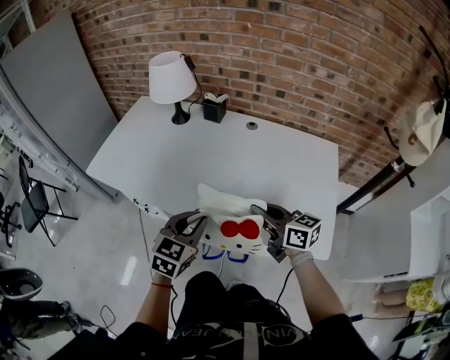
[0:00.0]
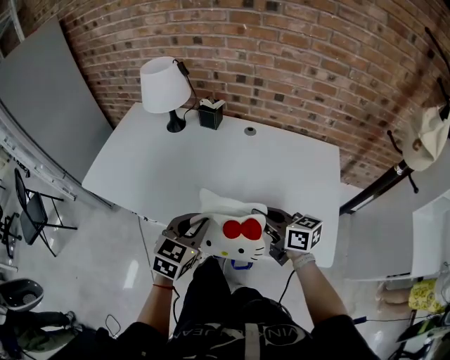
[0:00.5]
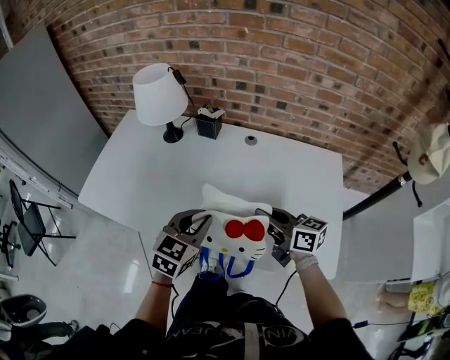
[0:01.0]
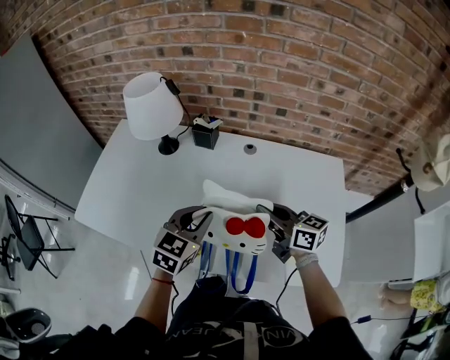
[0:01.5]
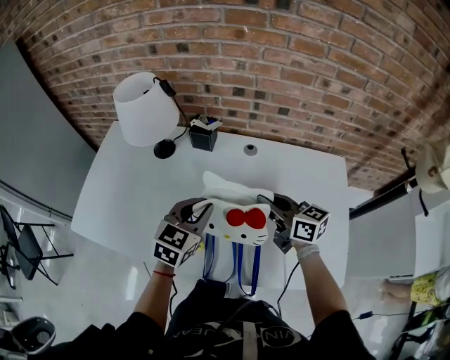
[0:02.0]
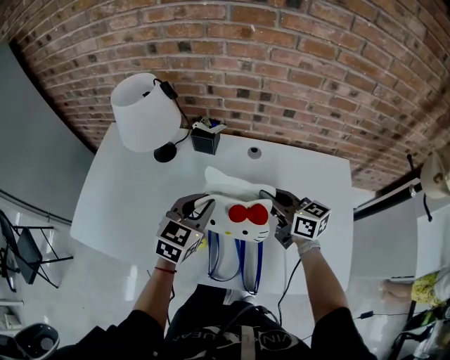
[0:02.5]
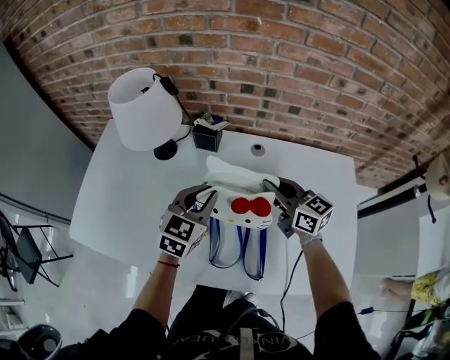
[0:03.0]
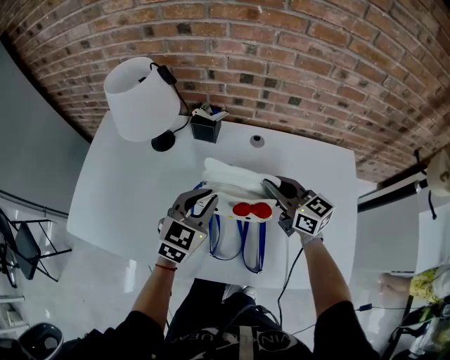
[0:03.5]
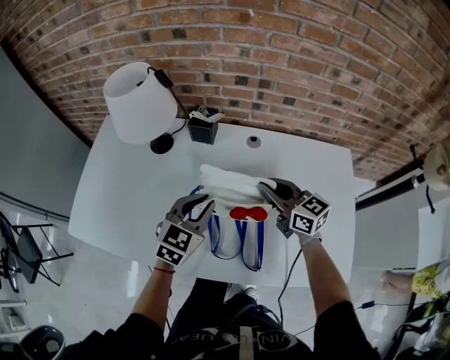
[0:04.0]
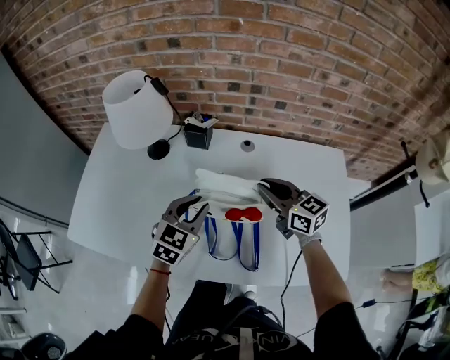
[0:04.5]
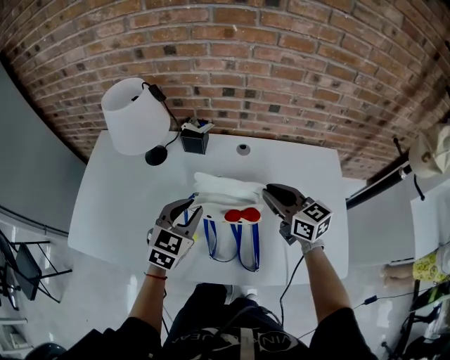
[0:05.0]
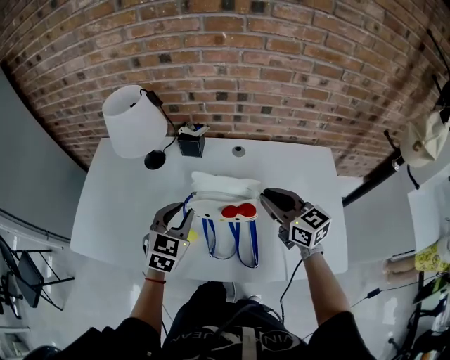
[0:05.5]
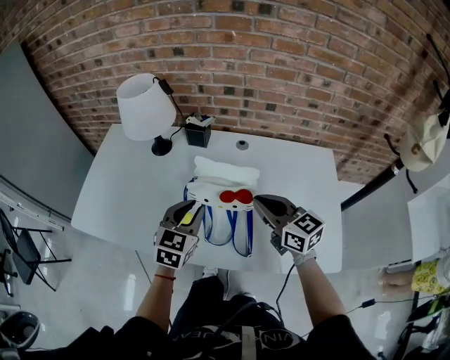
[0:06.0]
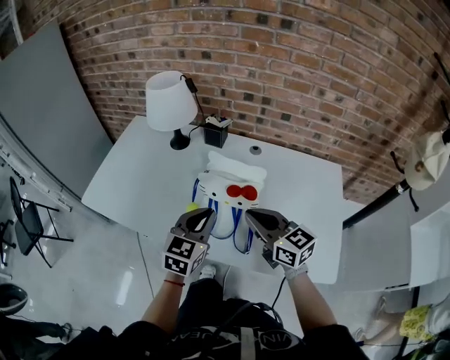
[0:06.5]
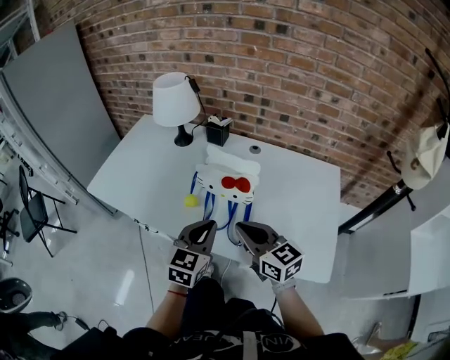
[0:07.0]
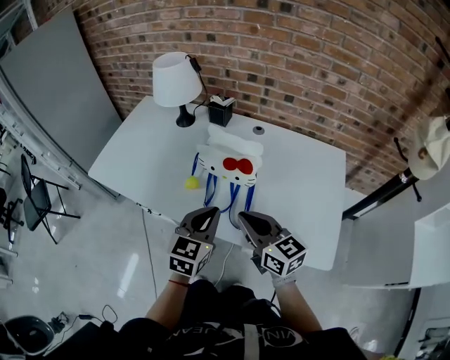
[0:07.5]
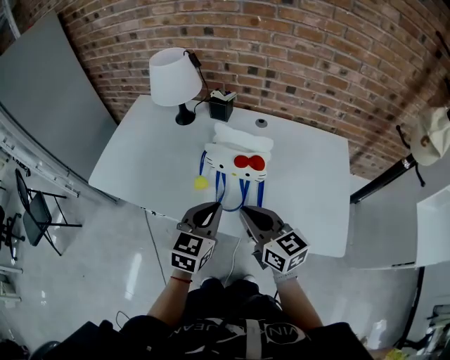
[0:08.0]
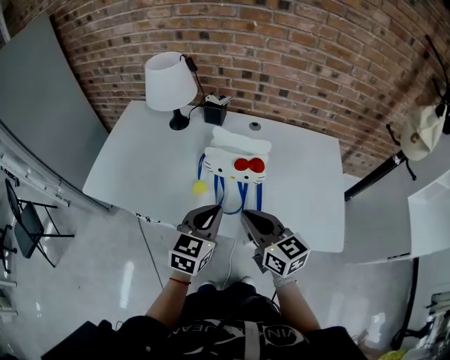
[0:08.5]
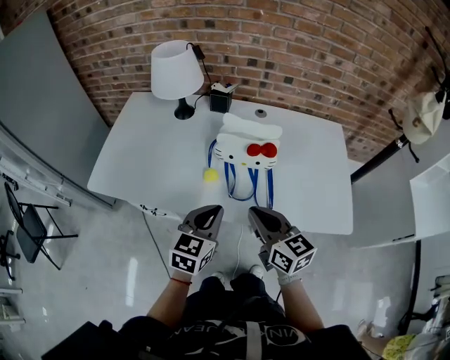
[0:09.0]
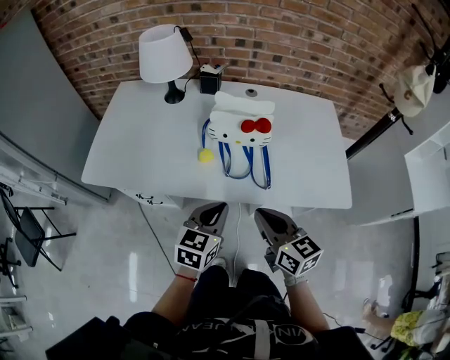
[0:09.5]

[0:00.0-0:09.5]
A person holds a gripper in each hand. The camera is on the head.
0:00.0 to 0:02.0: Both grippers move forward, some 25 cm.
0:04.0 to 0:05.5: The left gripper ends up some 5 cm from where it was. The right gripper goes approximately 5 cm backward.
0:05.5 to 0:07.5: The grippers both shift backward by approximately 20 cm. The left gripper swivels approximately 20 degrees.
0:07.5 to 0:09.5: The left gripper shifts some 15 cm to the left, backward and downward, and rotates roughly 20 degrees. The right gripper is displaced backward and to the left by approximately 15 cm, and changes its angle by approximately 20 degrees.

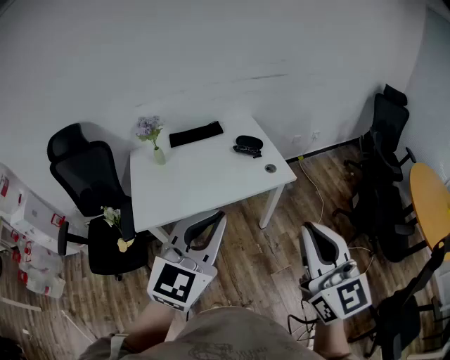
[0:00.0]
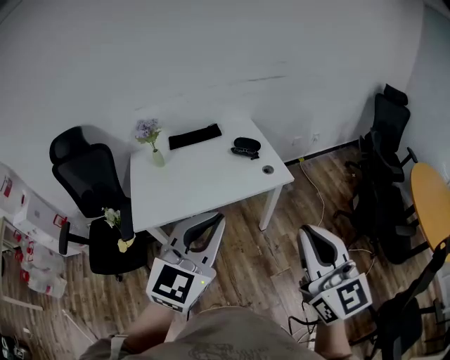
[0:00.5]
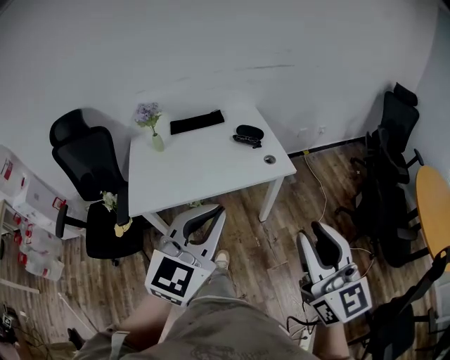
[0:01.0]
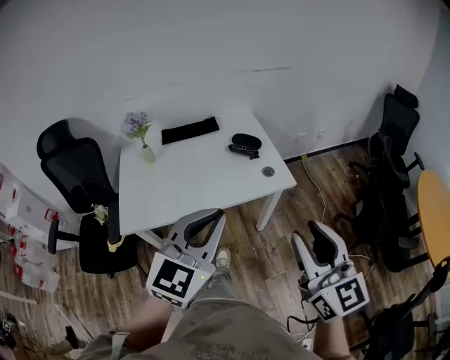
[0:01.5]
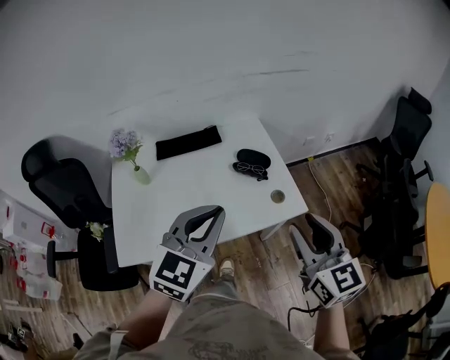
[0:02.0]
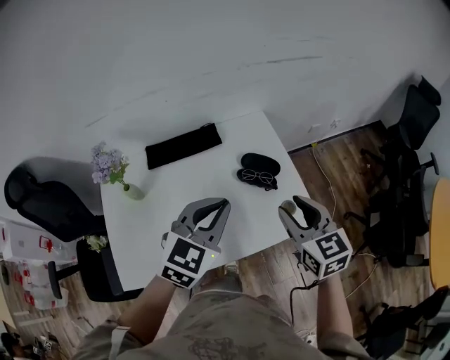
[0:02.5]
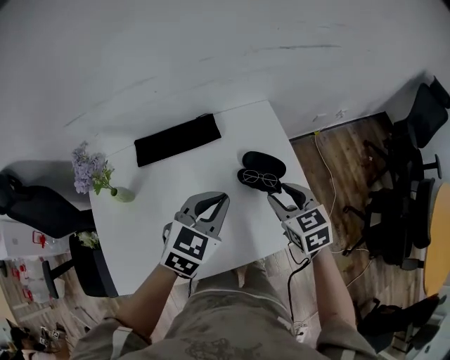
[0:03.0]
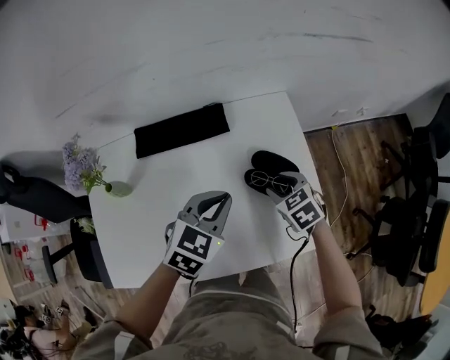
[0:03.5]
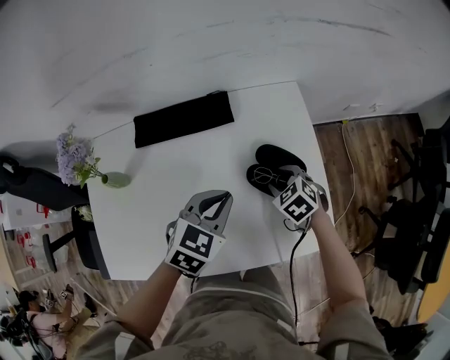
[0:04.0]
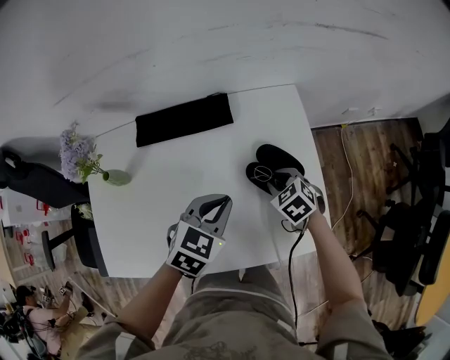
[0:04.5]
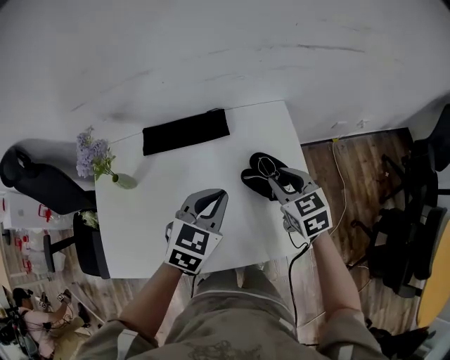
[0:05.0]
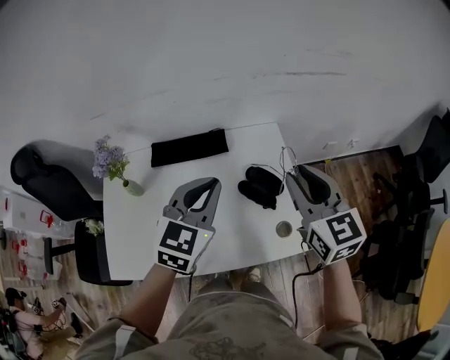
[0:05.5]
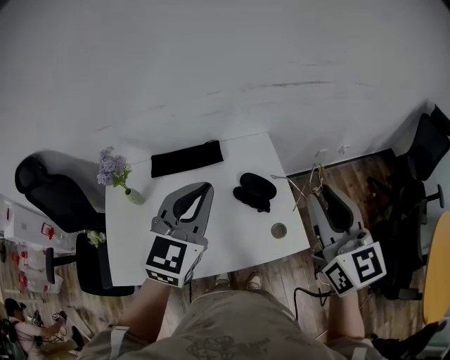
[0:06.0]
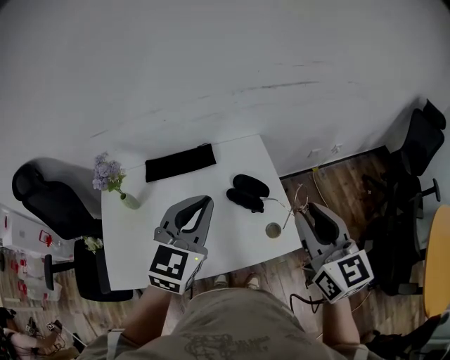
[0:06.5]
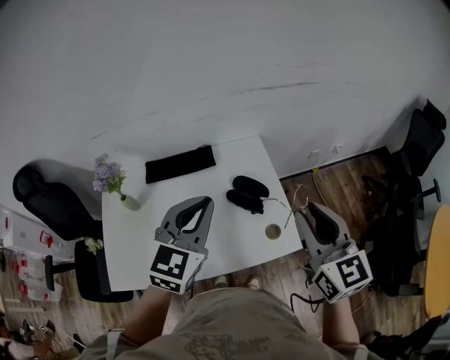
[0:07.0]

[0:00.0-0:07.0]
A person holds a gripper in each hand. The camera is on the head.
0:00.0 to 0:02.0: The left gripper goes about 25 cm forward; the right gripper travels forward and downward by about 30 cm, and opens its fingers.
0:02.0 to 0:03.5: The right gripper shifts some 40 cm downward and forward, and points its fingers roughly 50 degrees further downward, while the left gripper heads forward and downward, covering roughly 35 cm, and swivels roughly 30 degrees.
0:03.5 to 0:05.0: The right gripper is displaced upward by approximately 10 cm.
0:05.0 to 0:07.0: The right gripper shifts roughly 30 cm upward and backward, and swivels approximately 30 degrees, while the left gripper shifts roughly 20 cm upward, and turns by approximately 20 degrees.

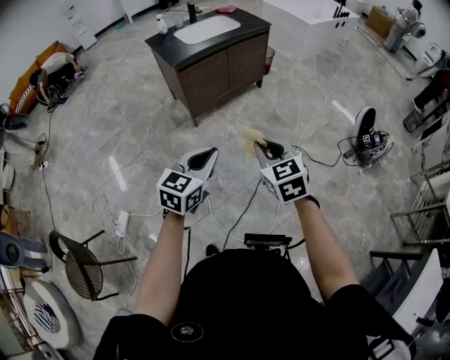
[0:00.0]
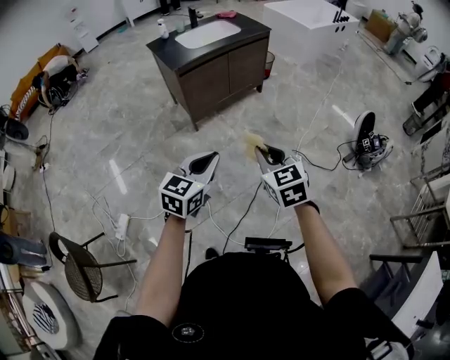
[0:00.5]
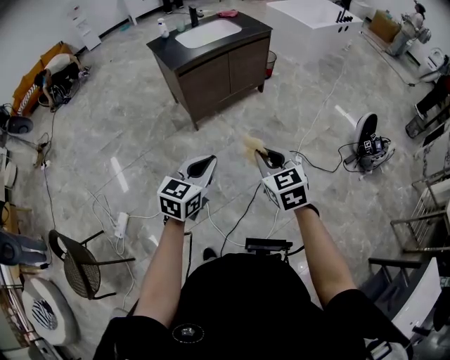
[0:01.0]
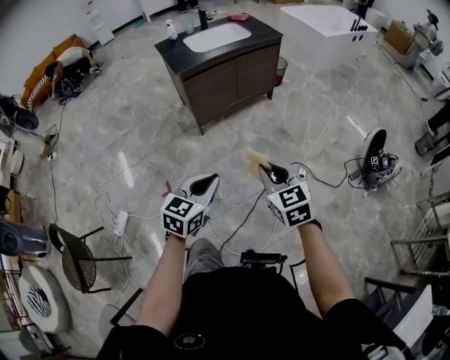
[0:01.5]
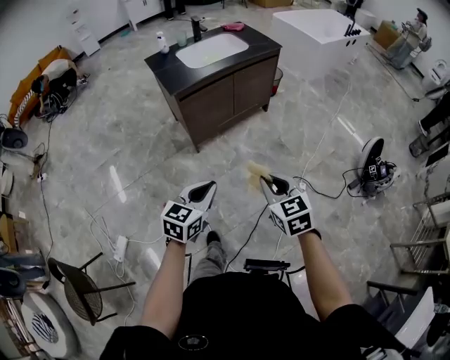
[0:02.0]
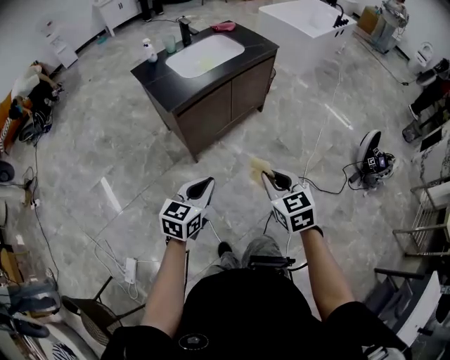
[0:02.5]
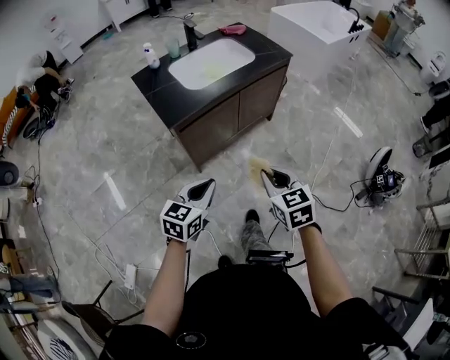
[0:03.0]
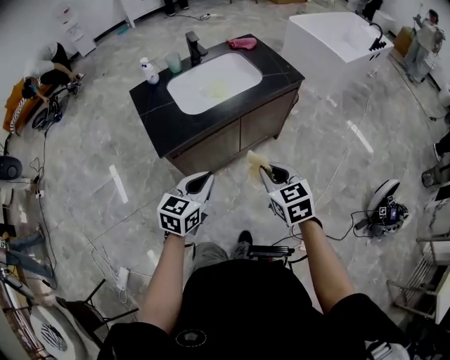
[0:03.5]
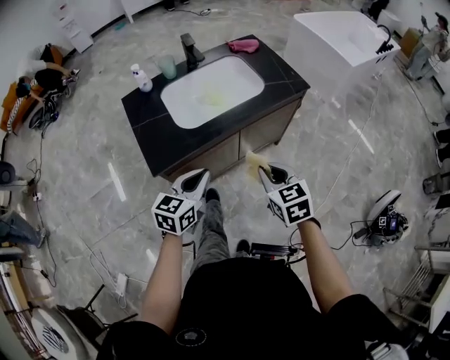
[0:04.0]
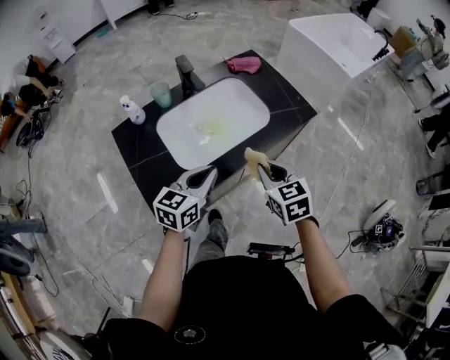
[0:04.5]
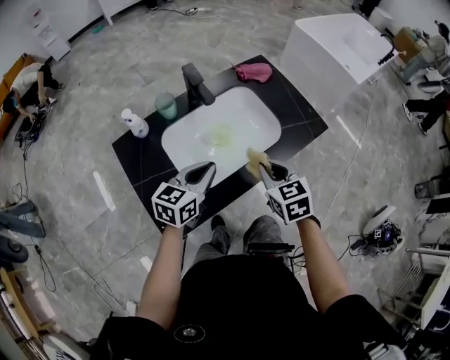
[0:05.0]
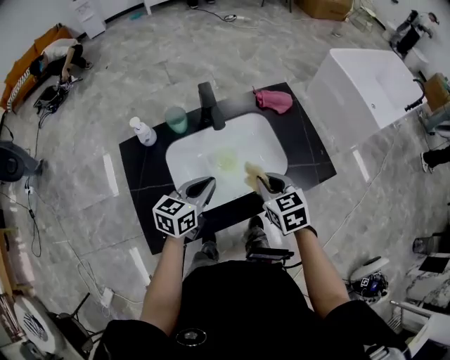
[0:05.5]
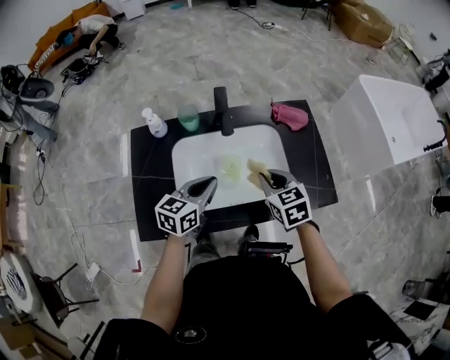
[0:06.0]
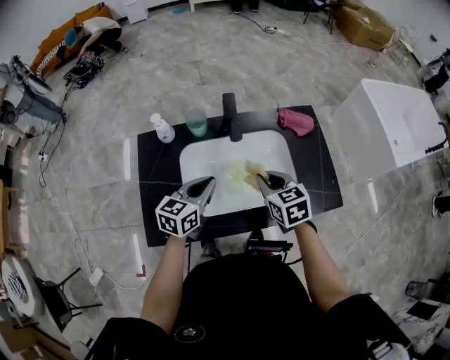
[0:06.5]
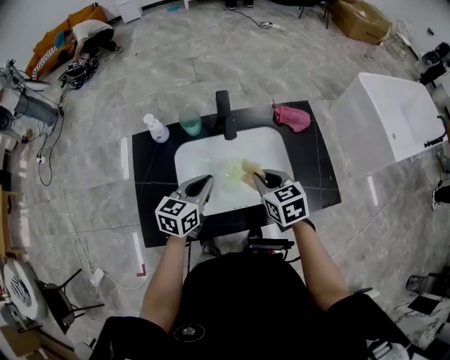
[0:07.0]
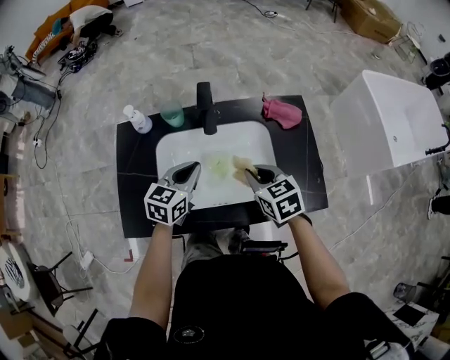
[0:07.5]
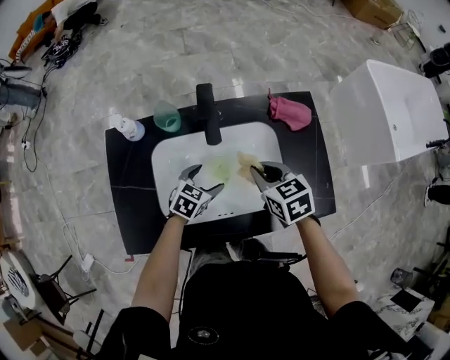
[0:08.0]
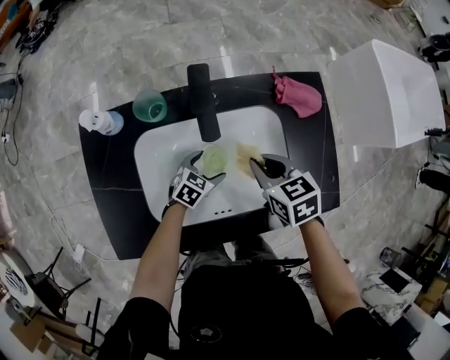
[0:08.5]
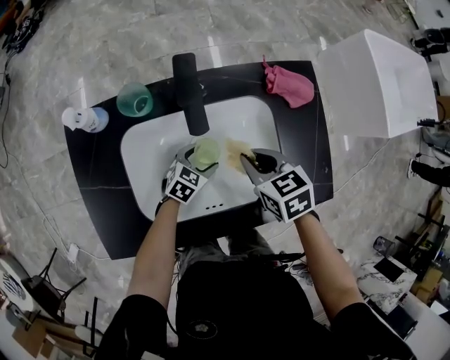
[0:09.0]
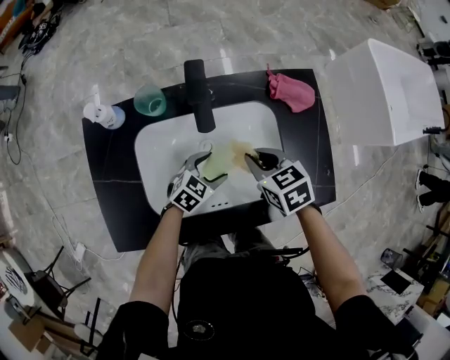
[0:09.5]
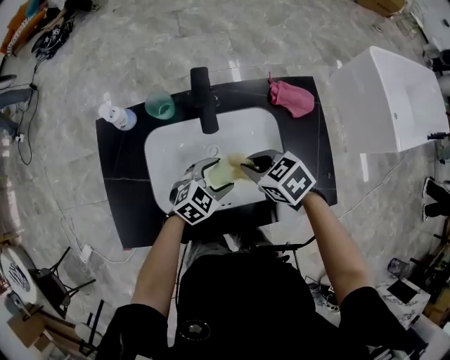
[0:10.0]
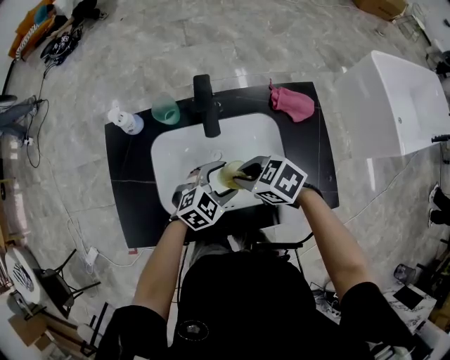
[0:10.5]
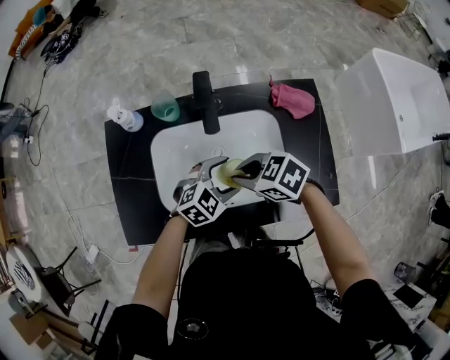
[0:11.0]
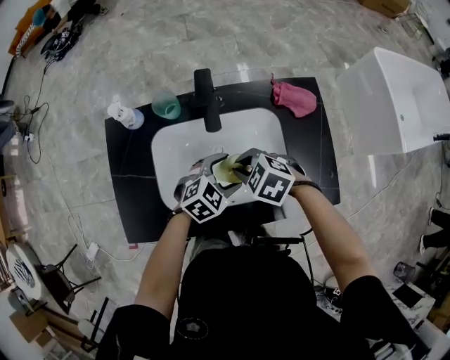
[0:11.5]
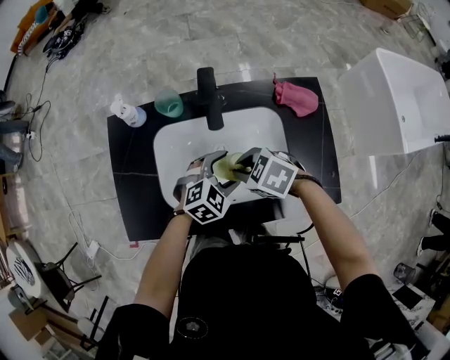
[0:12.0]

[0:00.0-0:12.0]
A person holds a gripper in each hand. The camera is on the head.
0:00.0 to 0:02.0: The left gripper is displaced forward and downward by approximately 15 cm. Meanwhile the right gripper is displaced forward by about 10 cm.
0:02.0 to 0:04.0: The pair of grippers is taken forward, about 50 cm.
0:04.0 to 0:06.0: Both grippers move forward, some 35 cm. The right gripper changes its angle by roughly 20 degrees.
0:06.0 to 0:08.0: The left gripper heads downward, covering some 15 cm, turns by roughly 30 degrees, and opens up, while the right gripper moves forward, some 5 cm.
0:08.0 to 0:10.0: The left gripper reaches about 10 cm downward, then returns, and turns by some 20 degrees, while the right gripper changes its angle by roughly 20 degrees.
0:10.0 to 0:12.0: The right gripper changes place by roughly 5 cm, and swivels some 20 degrees.
